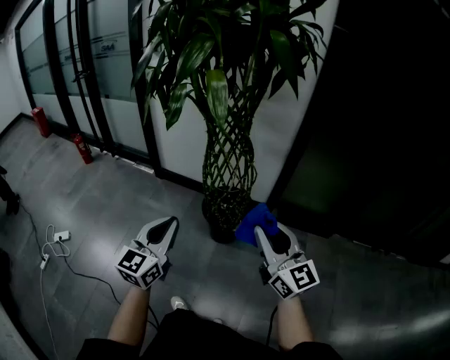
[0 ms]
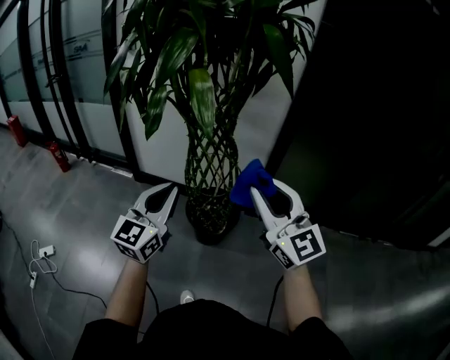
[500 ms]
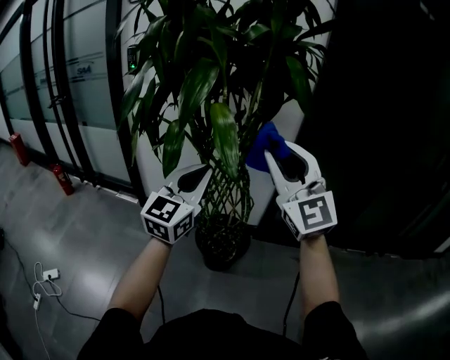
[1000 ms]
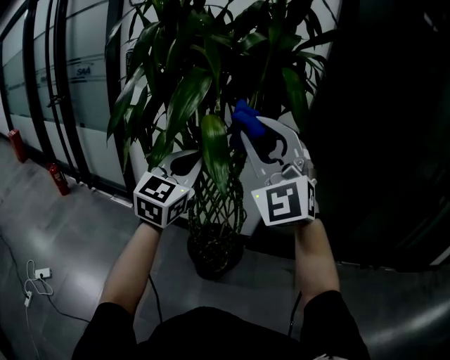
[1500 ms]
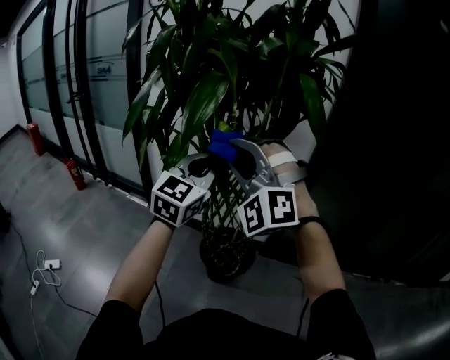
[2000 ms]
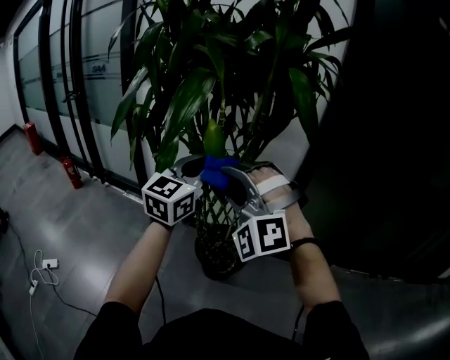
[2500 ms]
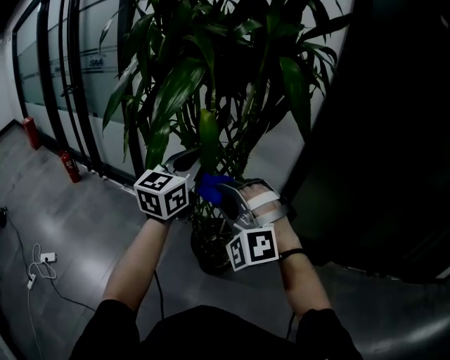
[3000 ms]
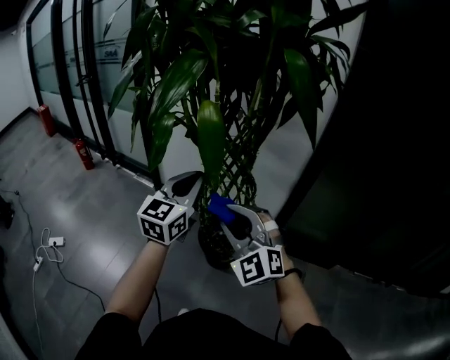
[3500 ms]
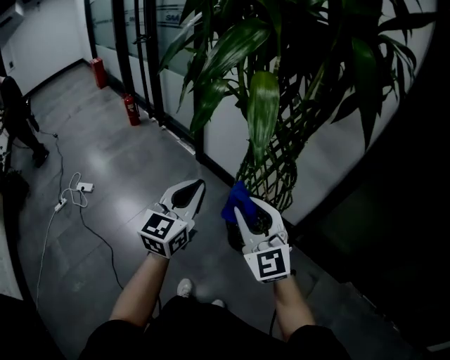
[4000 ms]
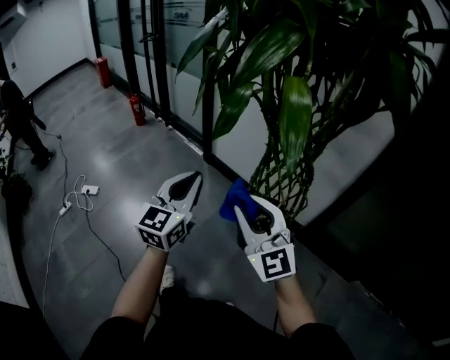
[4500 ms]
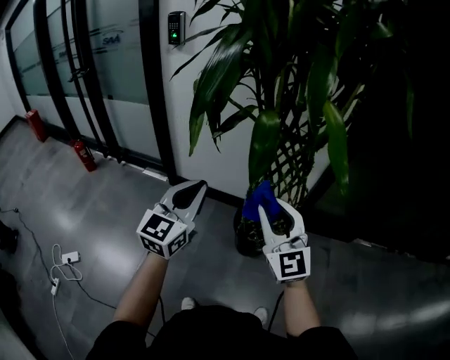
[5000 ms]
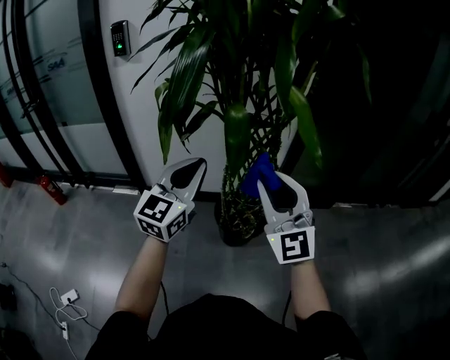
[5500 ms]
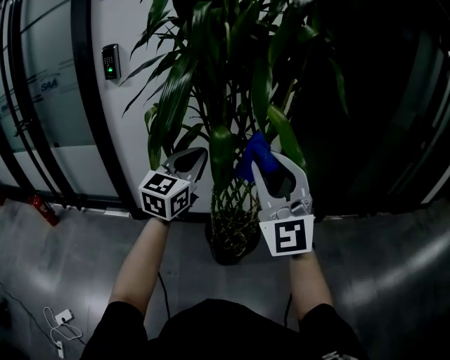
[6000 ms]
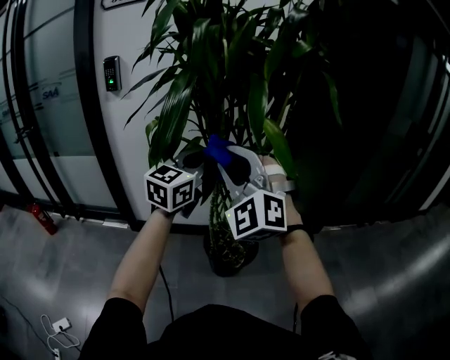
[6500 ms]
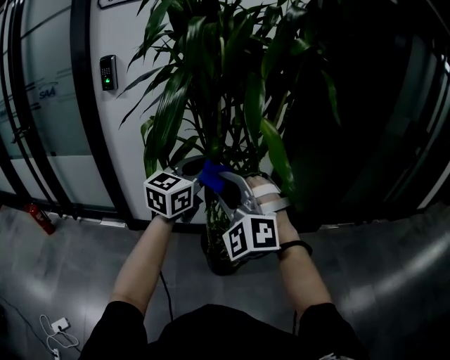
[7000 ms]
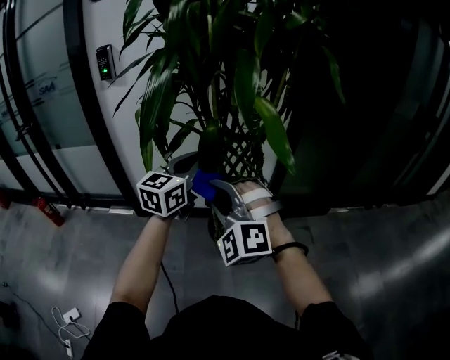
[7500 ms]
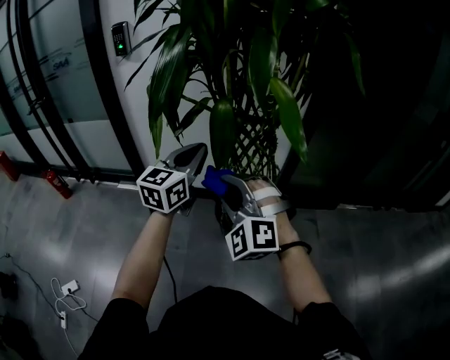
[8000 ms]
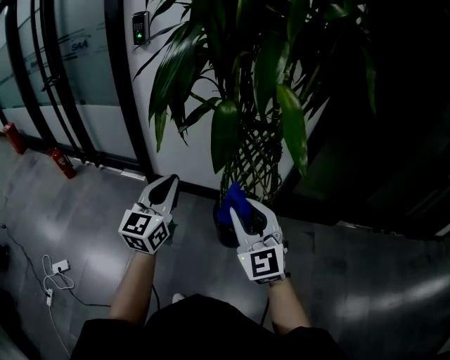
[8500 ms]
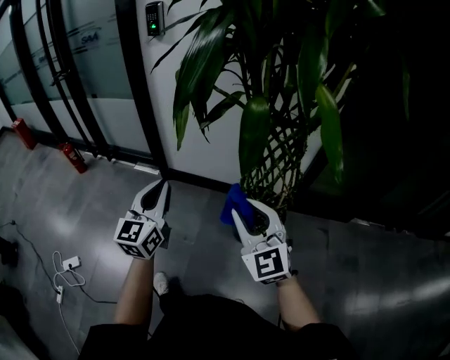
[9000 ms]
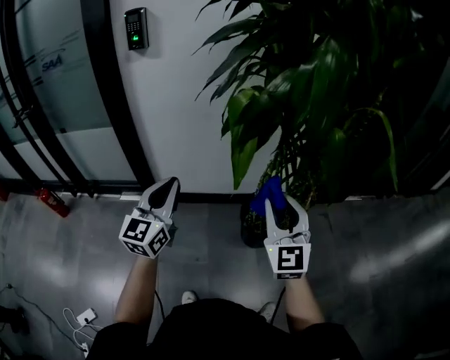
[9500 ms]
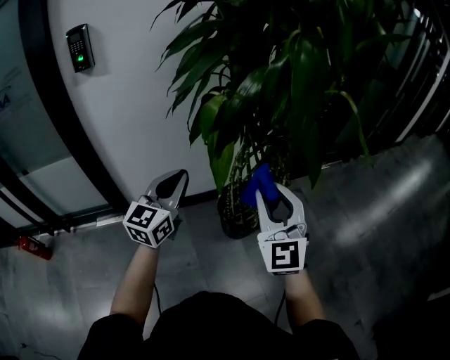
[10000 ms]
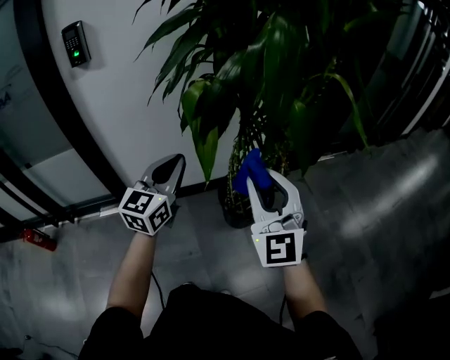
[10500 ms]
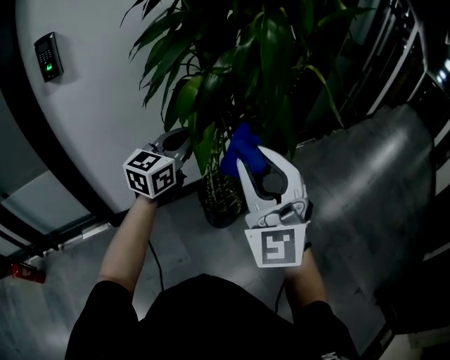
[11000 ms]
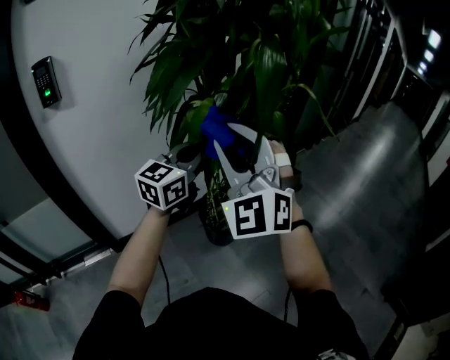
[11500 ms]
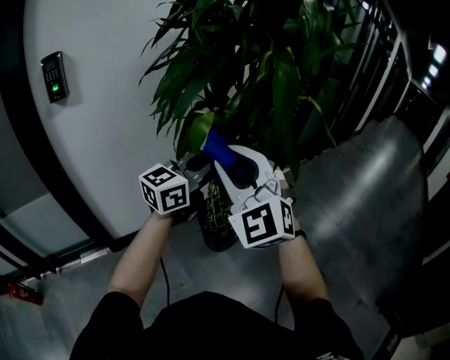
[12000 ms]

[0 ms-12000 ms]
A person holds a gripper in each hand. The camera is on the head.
0 ms to 2000 ms: The right gripper moves forward, upward and to the left, some 35 cm, and rotates around the line of its fingers by roughly 90 degrees, counterclockwise from behind, while the left gripper travels forward and upward by about 35 cm, and rotates roughly 20 degrees.
2000 ms to 4000 ms: The grippers both shift downward by some 20 cm. The left gripper swivels about 30 degrees. The right gripper rotates around the line of its fingers by roughly 60 degrees, clockwise from behind.
4000 ms to 6000 ms: The right gripper heads upward, covering about 20 cm, and turns by about 50 degrees. Meanwhile the left gripper changes place by about 25 cm, and changes its angle by roughly 40 degrees.
6000 ms to 8000 ms: The right gripper moves downward and to the left, about 20 cm, and tips its fingers downward by approximately 30 degrees, while the left gripper moves downward, some 5 cm.
8000 ms to 10000 ms: The right gripper moves some 10 cm, and swivels approximately 50 degrees. The left gripper shifts by approximately 20 cm.
10000 ms to 12000 ms: The right gripper is displaced upward and to the left by roughly 15 cm, and rotates approximately 20 degrees. Meanwhile the left gripper is displaced to the right and upward by about 15 cm, and swivels roughly 40 degrees.

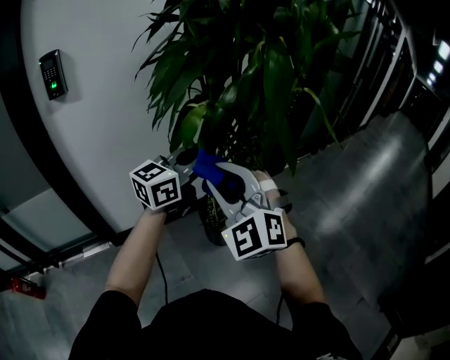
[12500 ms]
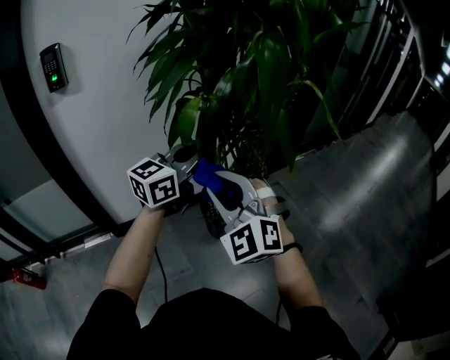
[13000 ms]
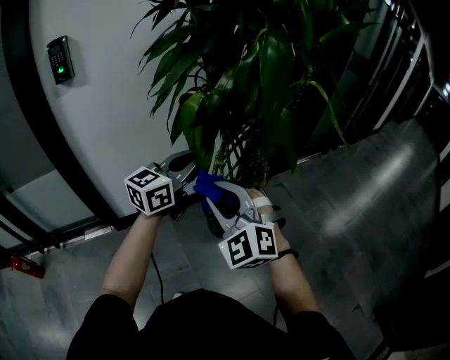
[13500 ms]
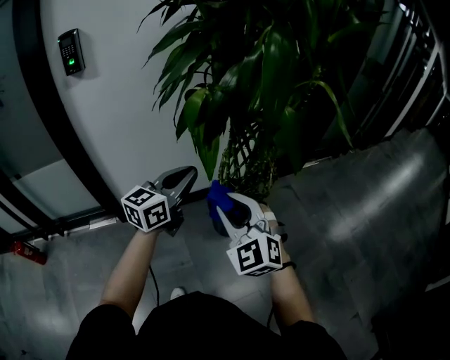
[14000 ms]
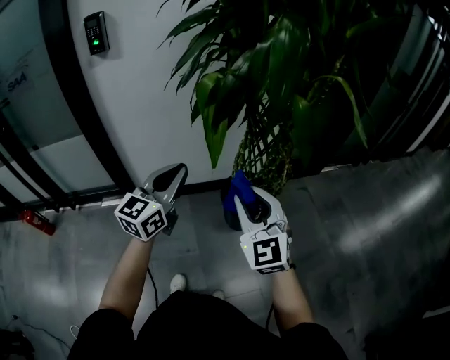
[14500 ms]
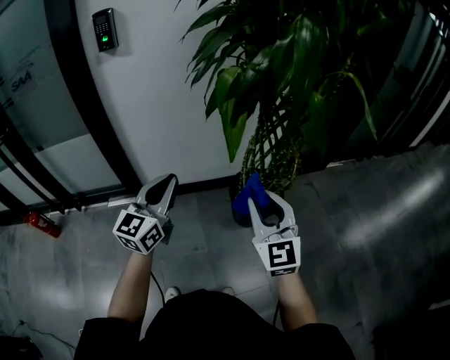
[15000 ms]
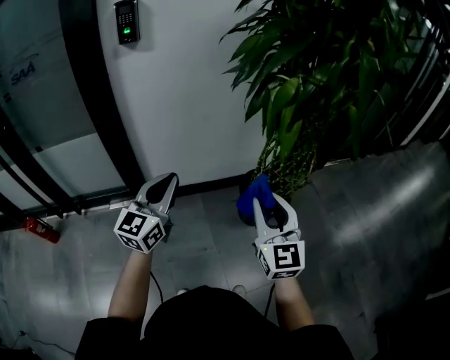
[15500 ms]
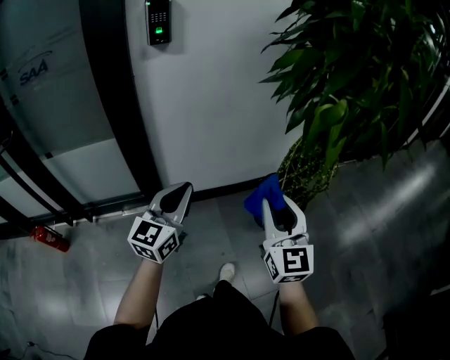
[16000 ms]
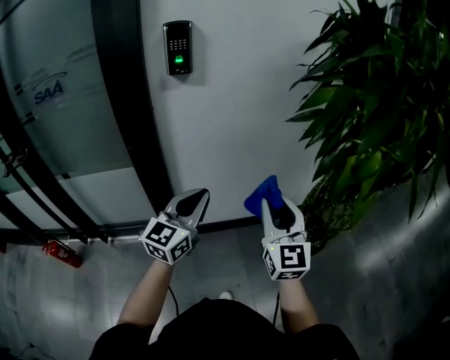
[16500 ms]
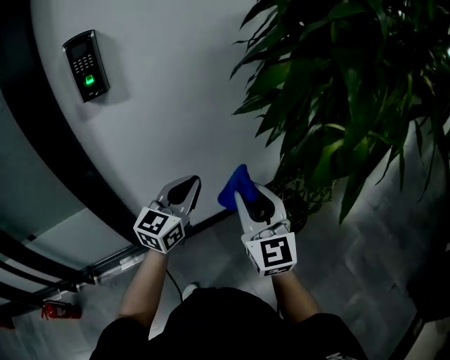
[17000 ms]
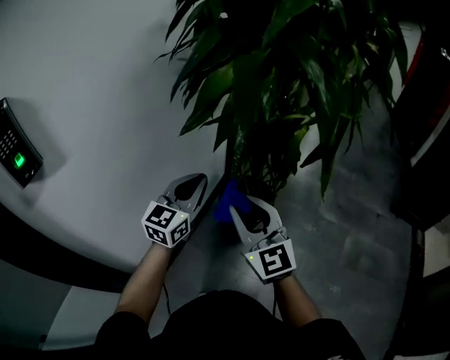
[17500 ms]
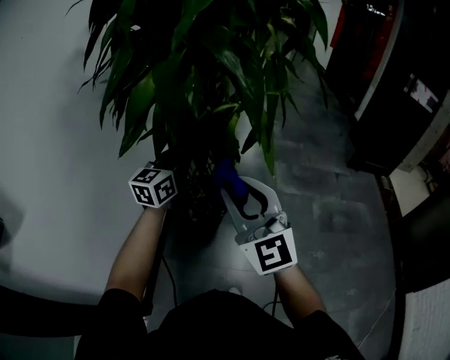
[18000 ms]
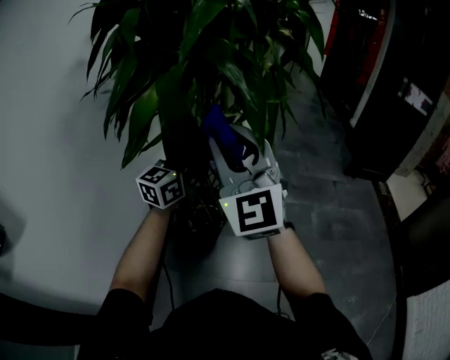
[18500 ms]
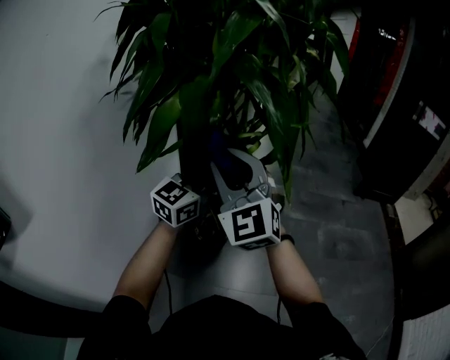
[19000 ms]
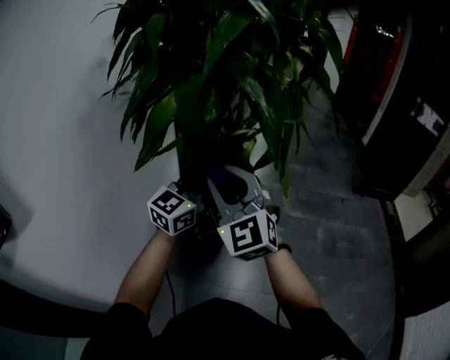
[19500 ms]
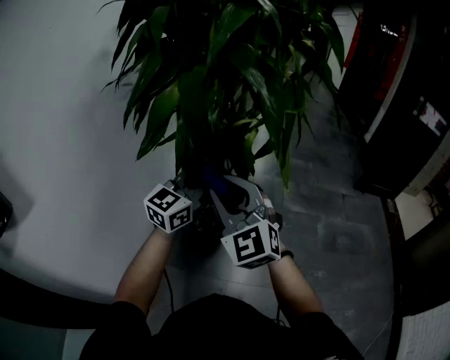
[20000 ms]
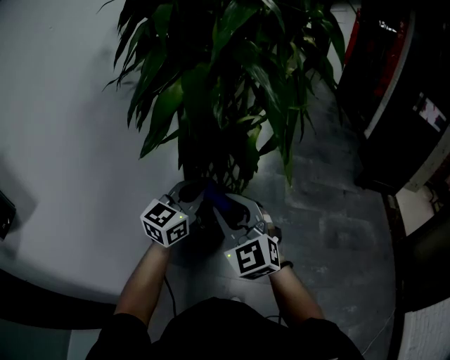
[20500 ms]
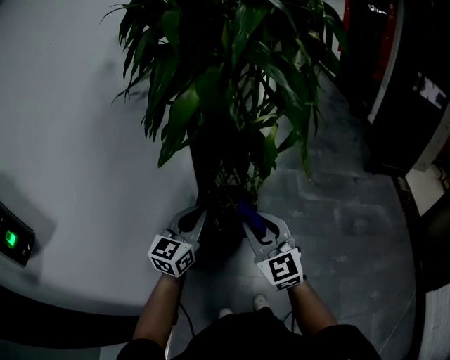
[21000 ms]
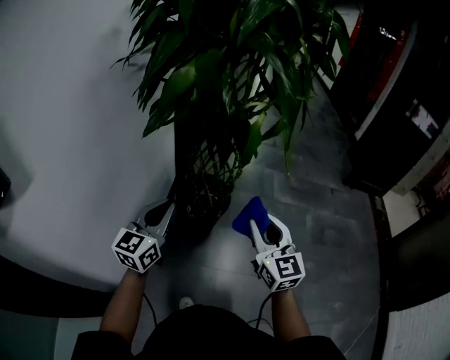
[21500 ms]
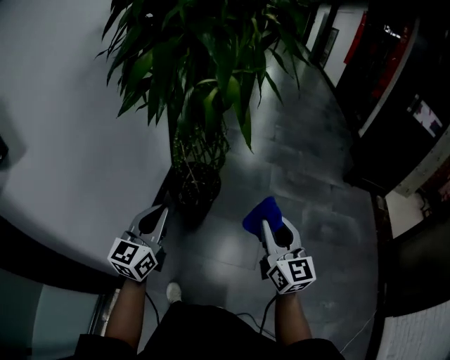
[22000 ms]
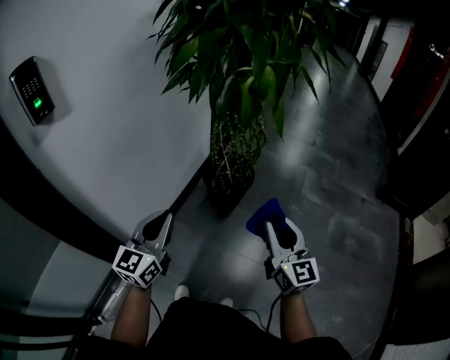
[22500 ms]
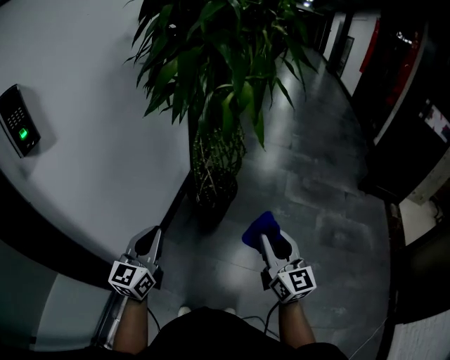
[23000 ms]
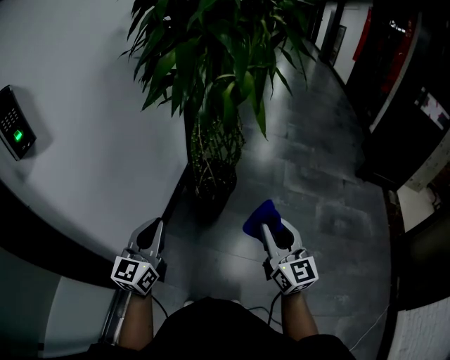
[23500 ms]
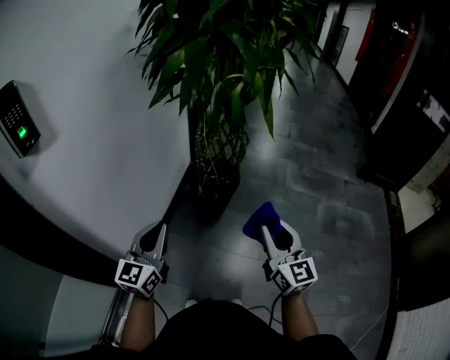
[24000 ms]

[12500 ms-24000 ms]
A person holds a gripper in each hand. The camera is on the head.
12500 ms to 14500 ms: The left gripper heads downward, backward and to the left, covering about 15 cm, and changes its angle by roughly 30 degrees. The right gripper goes approximately 15 cm downward and to the right, and rotates some 30 degrees.
14500 ms to 16500 ms: Both grippers travel together to the left, roughly 30 cm. The right gripper rotates approximately 20 degrees.
16500 ms to 18500 ms: The left gripper changes place by some 40 cm, and changes its angle by some 80 degrees. Meanwhile the right gripper travels upward by some 15 cm, and changes its angle by roughly 60 degrees.
18500 ms to 20000 ms: The right gripper heads downward, covering some 10 cm. The left gripper is displaced backward by about 5 cm.
20000 ms to 22000 ms: The left gripper travels backward and downward by some 25 cm, and rotates approximately 20 degrees; the right gripper moves to the right and backward, about 30 cm, and rolls clockwise, seen from behind, by some 40 degrees.
22000 ms to 24000 ms: The left gripper moves backward and to the left, roughly 15 cm, while the right gripper is displaced to the left and backward by roughly 10 cm.

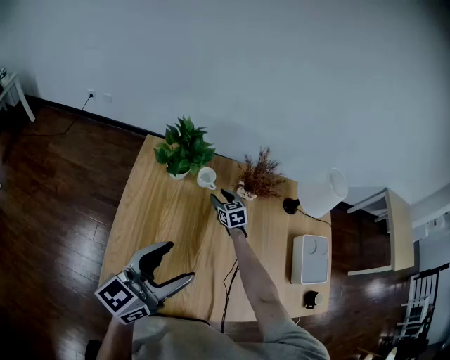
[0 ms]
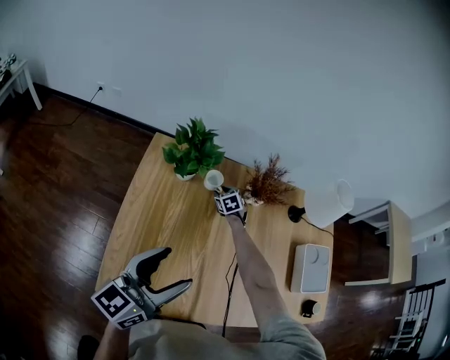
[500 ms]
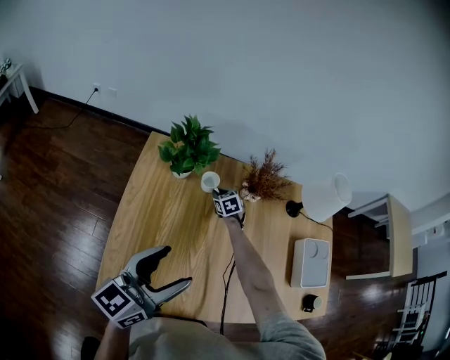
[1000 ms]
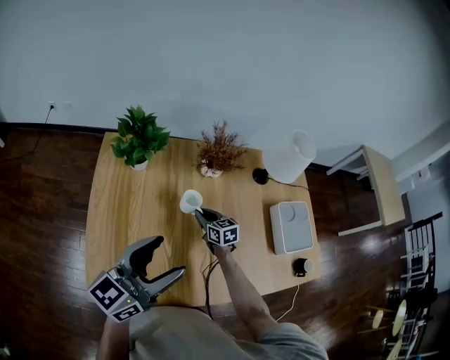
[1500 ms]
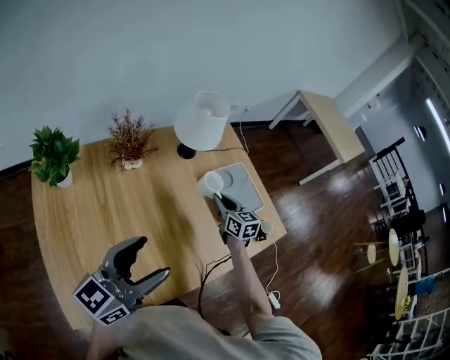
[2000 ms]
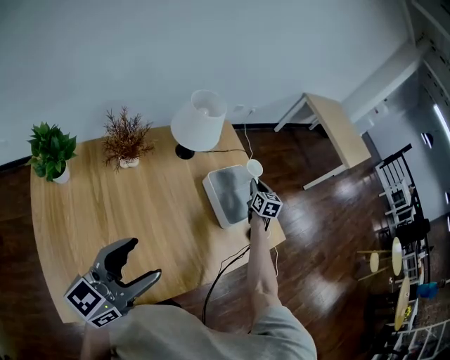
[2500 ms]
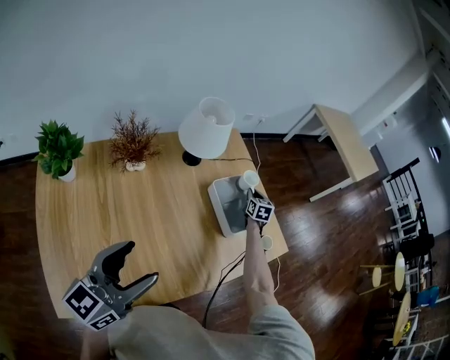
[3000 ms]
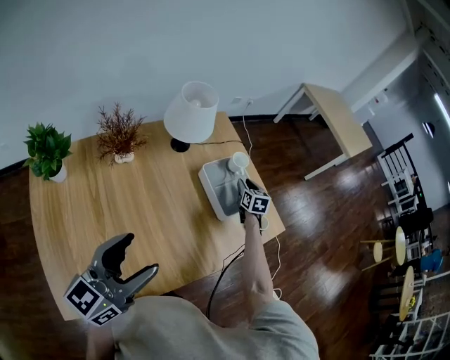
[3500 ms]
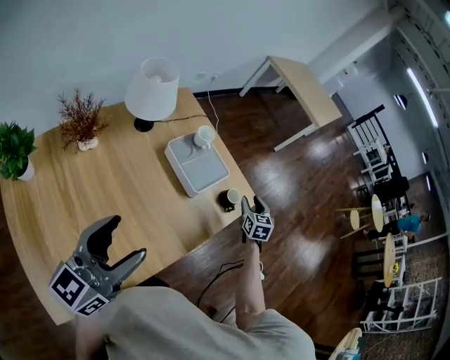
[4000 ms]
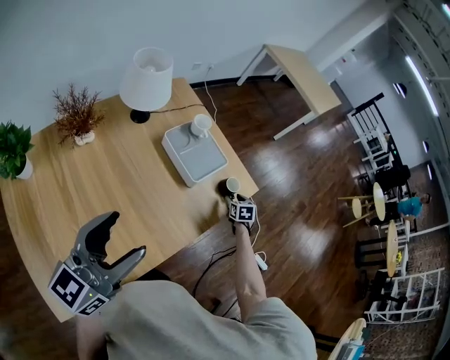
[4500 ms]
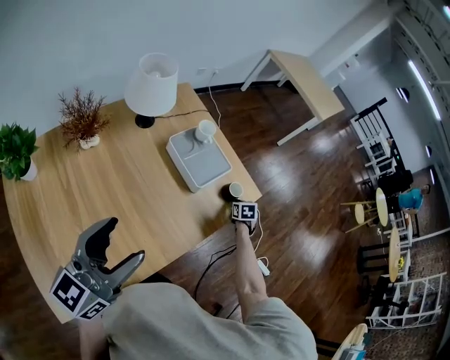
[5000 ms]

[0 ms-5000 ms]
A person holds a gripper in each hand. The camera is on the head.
0 ms to 2500 ms: The right gripper ends up about 70 cm from where it was, changes its angle by about 60 degrees, and closes. Meanwhile the left gripper shifts by about 25 cm, and changes its angle by approximately 30 degrees.
2500 ms to 5000 ms: The right gripper goes roughly 30 cm to the right, downward and backward, tilts its fingers about 30 degrees downward, and opens, then closes again.
